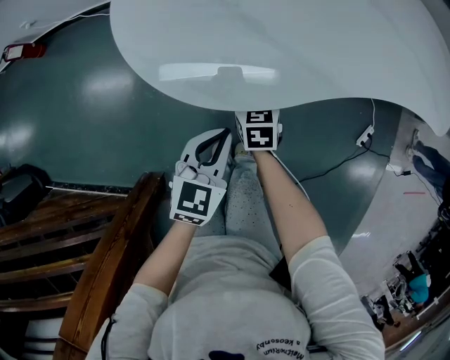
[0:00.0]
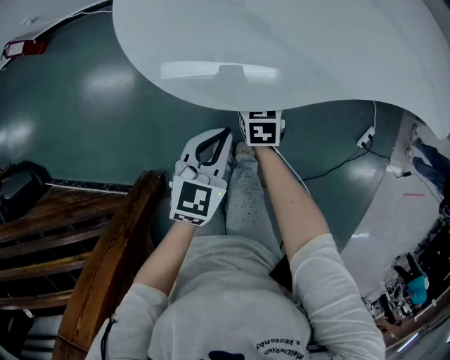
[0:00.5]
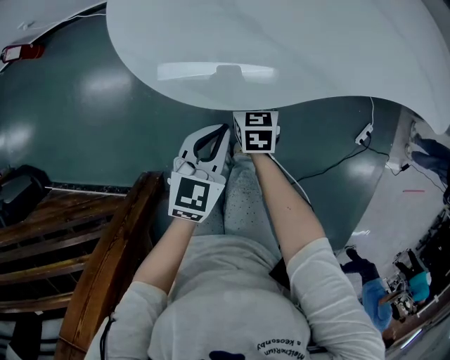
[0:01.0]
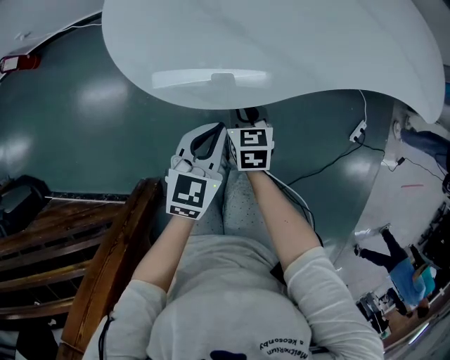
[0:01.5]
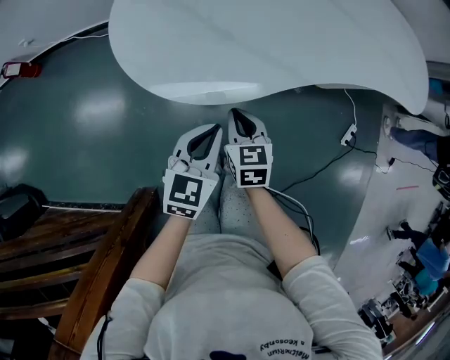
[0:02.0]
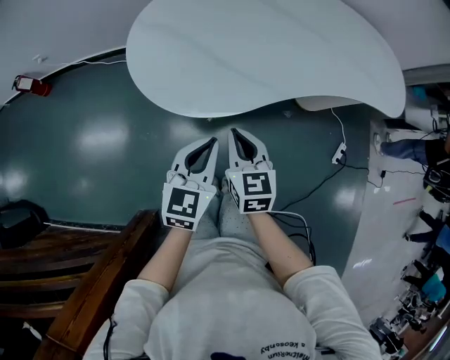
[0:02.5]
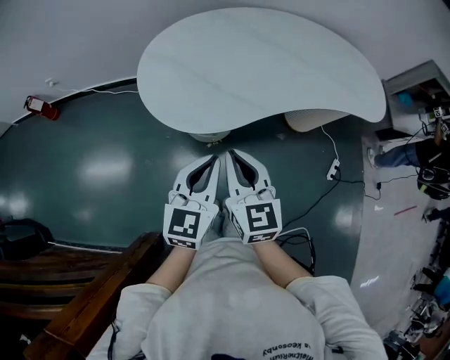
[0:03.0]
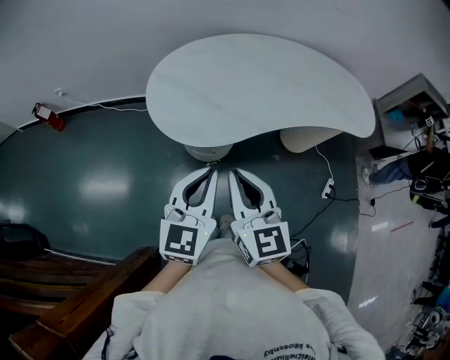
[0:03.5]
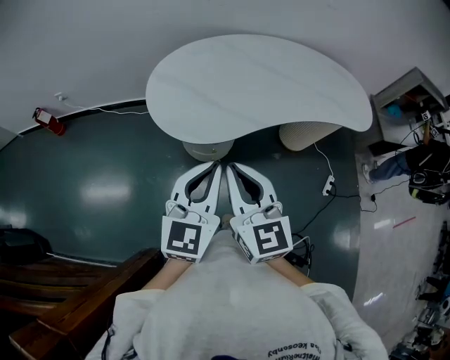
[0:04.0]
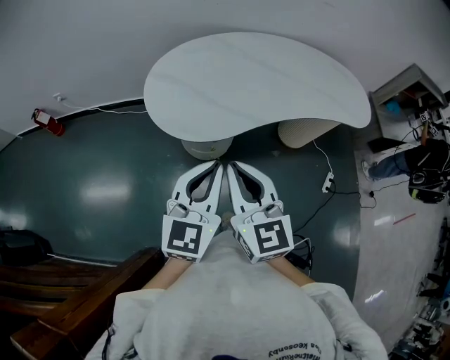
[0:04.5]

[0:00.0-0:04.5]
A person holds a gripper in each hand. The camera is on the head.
0:00.0 to 0:02.0: The right gripper travels upward and backward by roughly 15 cm, and closes up; the left gripper moves some 5 cm.
0:02.0 to 0:04.5: Both grippers travel together upward, some 30 cm. The left gripper changes its angle by roughly 20 degrees, while the right gripper tilts its fingers about 30 degrees upward.

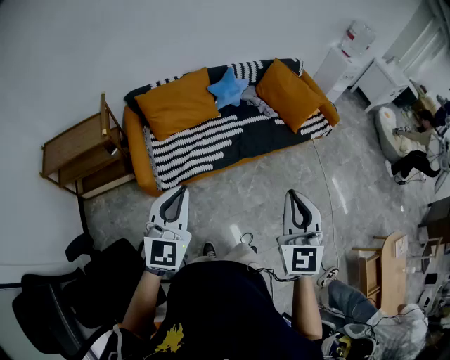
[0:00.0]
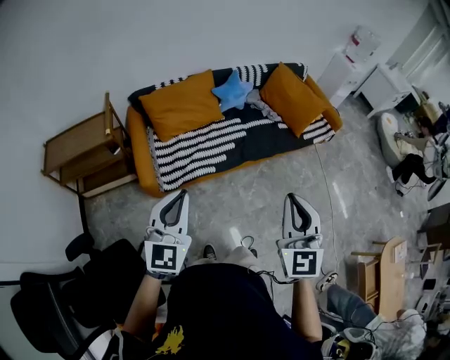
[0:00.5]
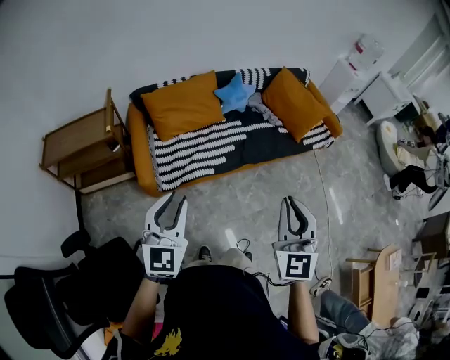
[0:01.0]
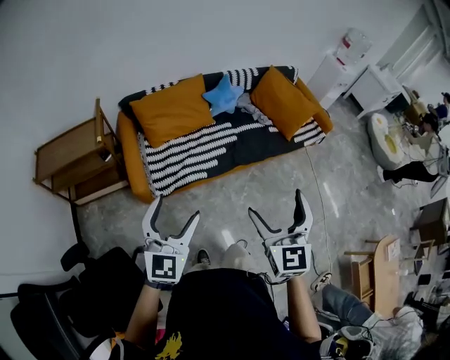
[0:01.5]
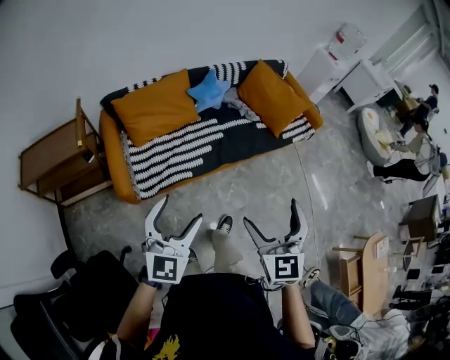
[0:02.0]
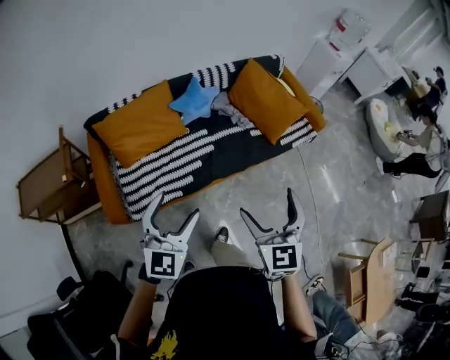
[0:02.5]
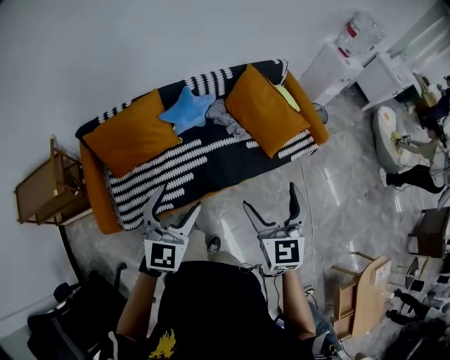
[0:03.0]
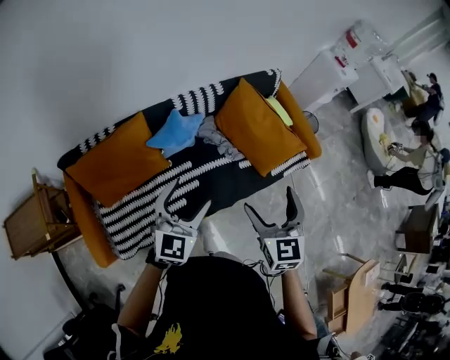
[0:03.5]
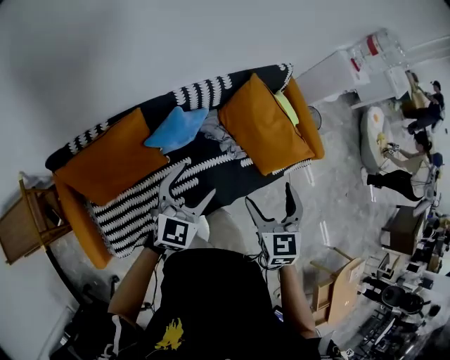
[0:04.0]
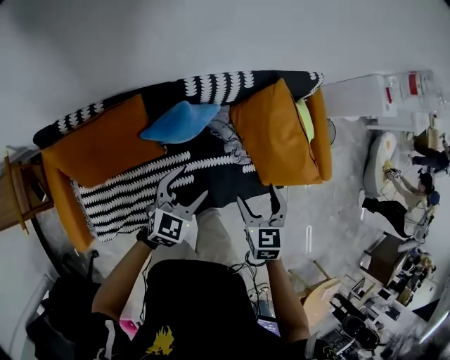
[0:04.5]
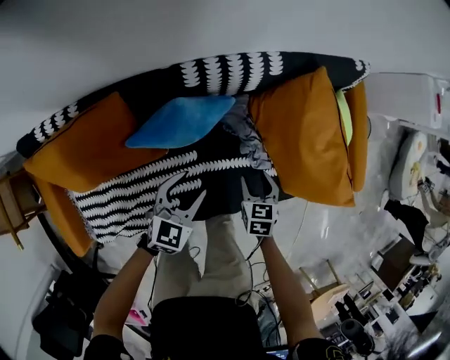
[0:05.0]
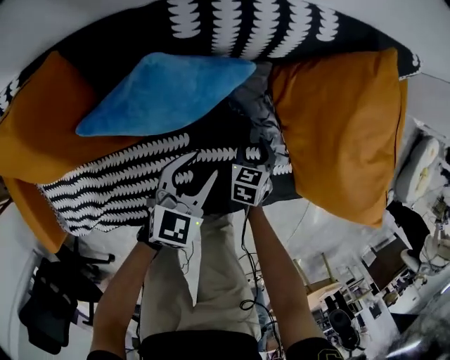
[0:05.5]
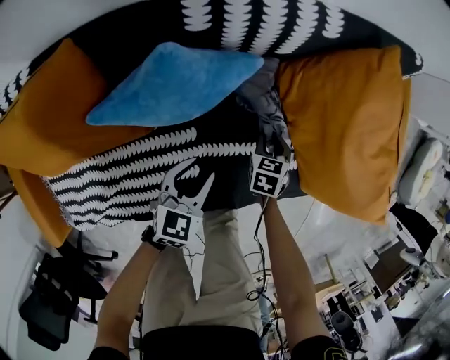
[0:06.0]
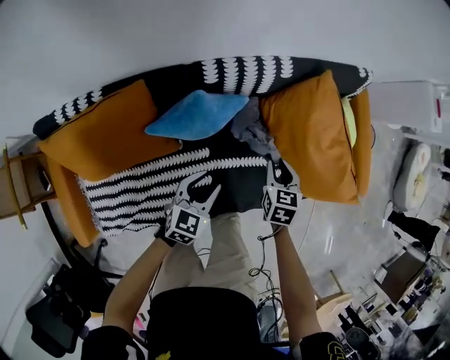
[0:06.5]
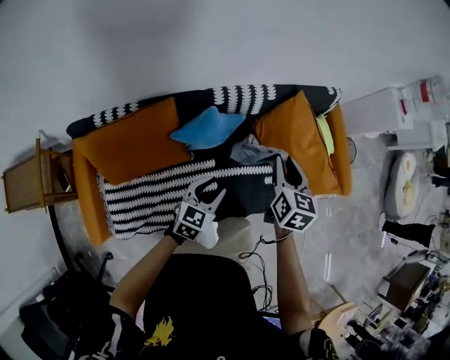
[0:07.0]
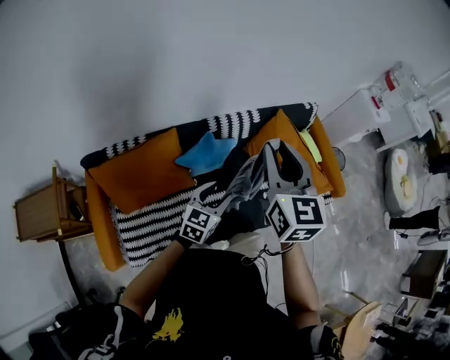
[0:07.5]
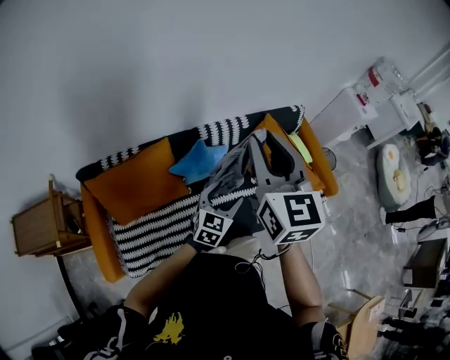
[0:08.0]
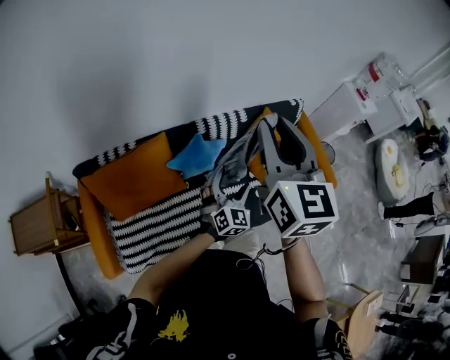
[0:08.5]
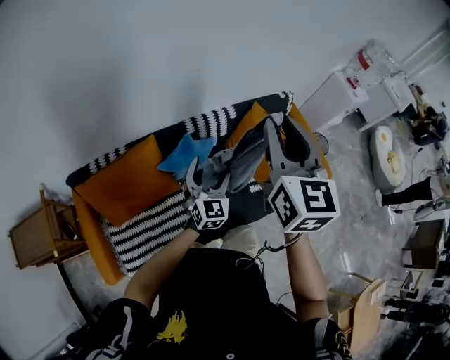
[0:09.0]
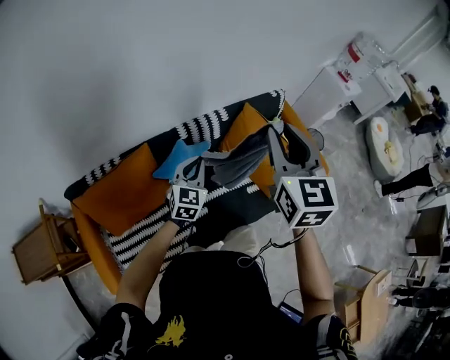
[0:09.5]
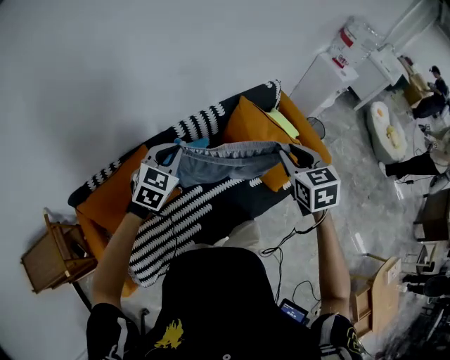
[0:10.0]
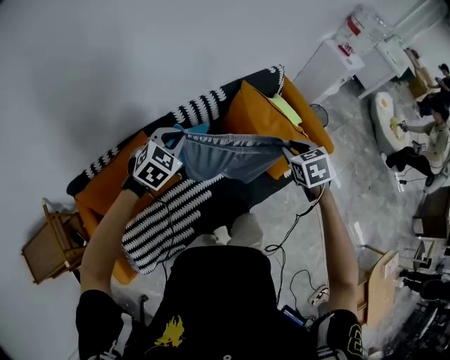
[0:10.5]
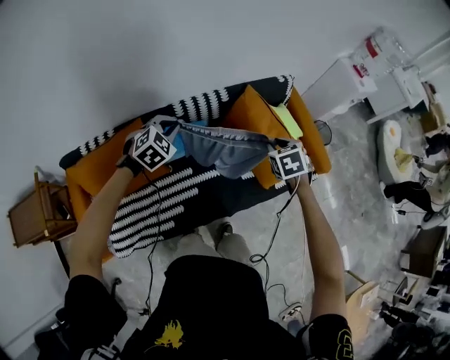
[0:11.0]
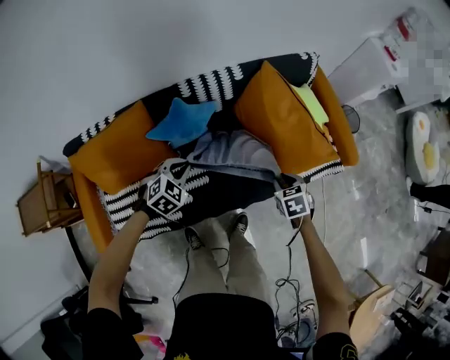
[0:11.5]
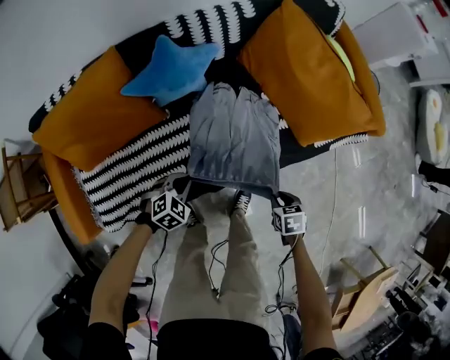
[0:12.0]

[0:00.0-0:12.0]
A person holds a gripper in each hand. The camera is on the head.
0:00.0 to 0:02.0: The grippers both shift forward by about 5 cm. The left gripper opens up, while the right gripper opens up.
0:02.0 to 0:04.0: Both grippers are carried forward, some 70 cm.
0:04.0 to 0:06.0: Both grippers travel together downward, roughly 60 cm. The left gripper turns by about 30 degrees, and closes. Meanwhile the right gripper angles its fingers downward, by roughly 30 degrees, and closes.
0:06.0 to 0:08.0: The right gripper heads upward, covering some 90 cm, and tilts its fingers roughly 60 degrees upward. Meanwhile the left gripper moves upward, roughly 50 cm, changes its angle by some 20 degrees, and opens.
0:08.0 to 0:10.0: The left gripper moves forward, to the left and upward, some 15 cm, swivels about 20 degrees, and closes up, while the right gripper shifts some 25 cm to the right and downward, and changes its angle by some 30 degrees.
0:10.0 to 0:12.0: The left gripper heads downward and backward, covering some 60 cm, and tips its fingers downward by approximately 30 degrees; the right gripper goes approximately 60 cm downward, and tilts its fingers roughly 40 degrees downward.

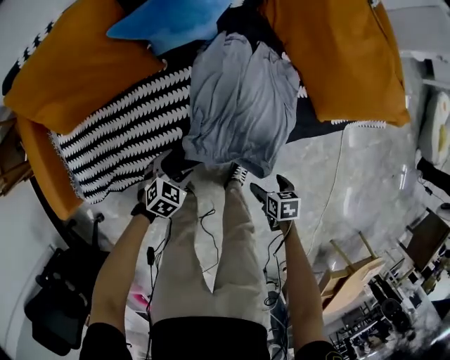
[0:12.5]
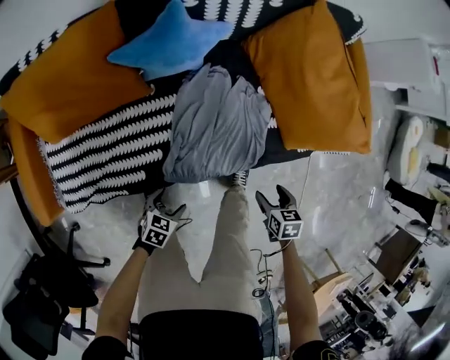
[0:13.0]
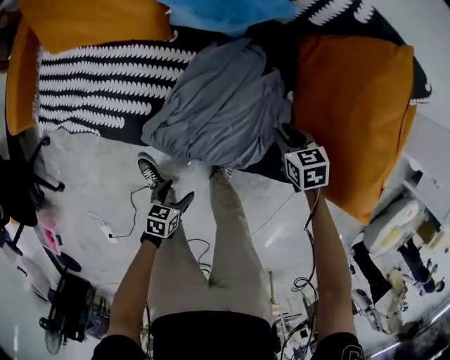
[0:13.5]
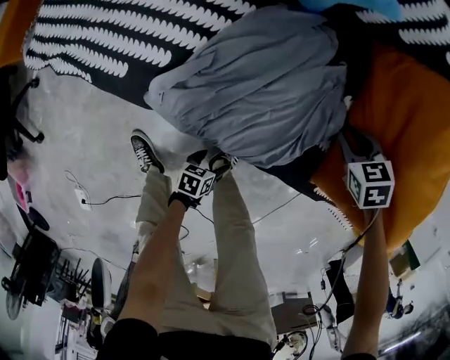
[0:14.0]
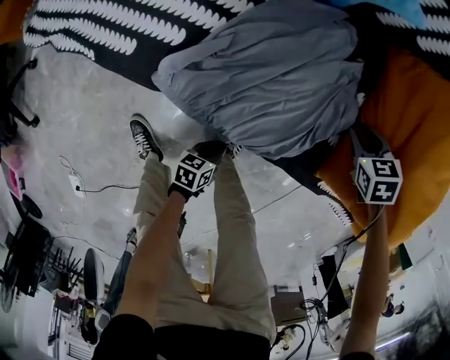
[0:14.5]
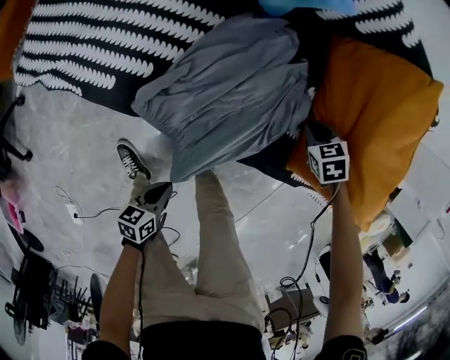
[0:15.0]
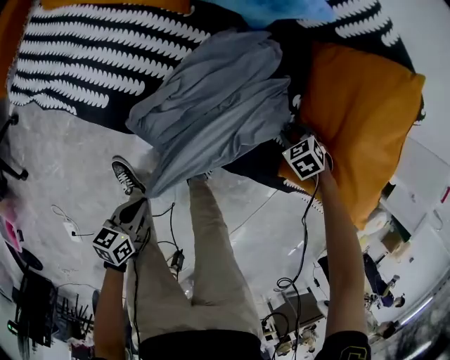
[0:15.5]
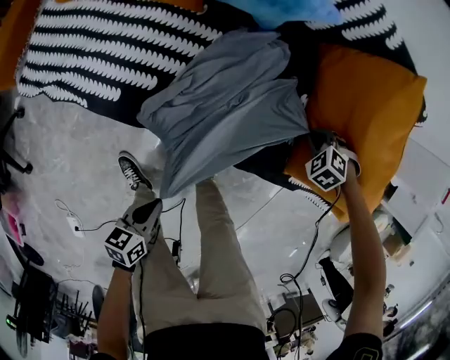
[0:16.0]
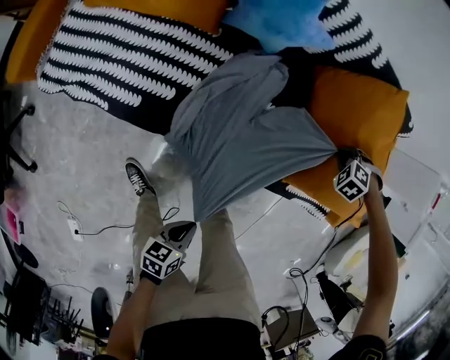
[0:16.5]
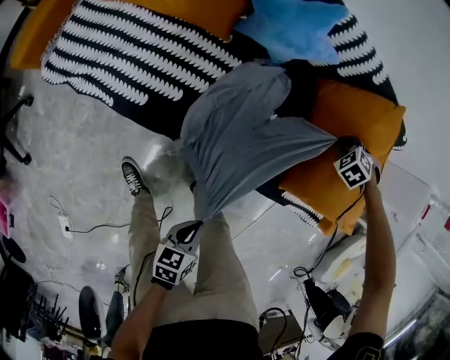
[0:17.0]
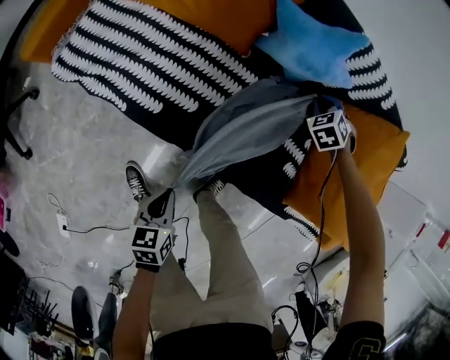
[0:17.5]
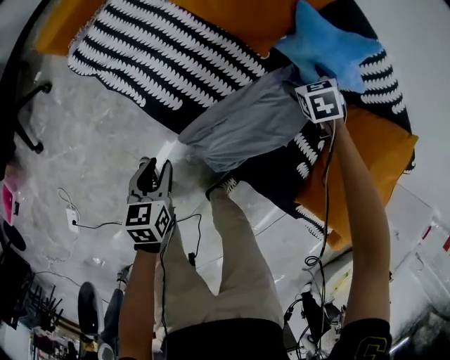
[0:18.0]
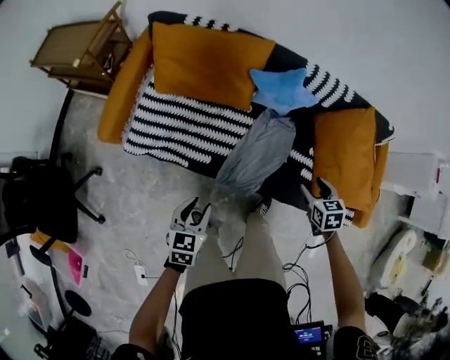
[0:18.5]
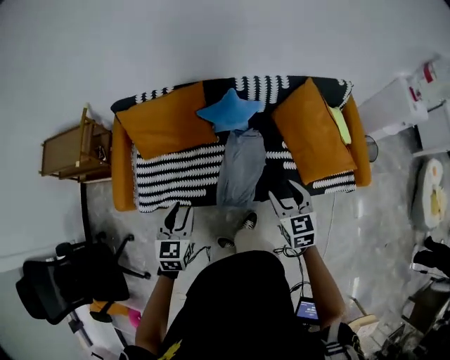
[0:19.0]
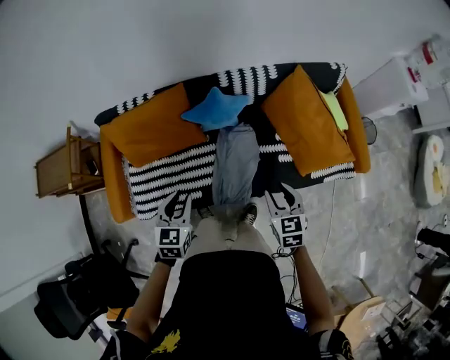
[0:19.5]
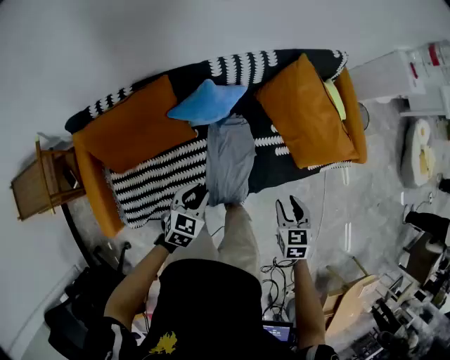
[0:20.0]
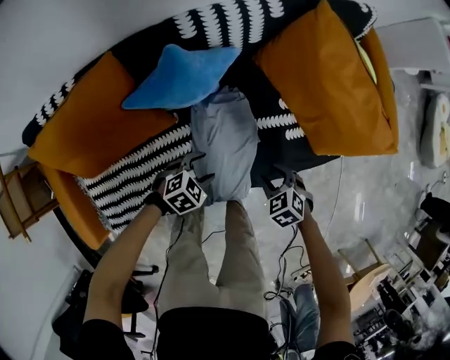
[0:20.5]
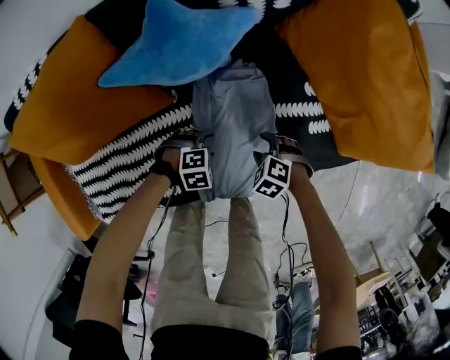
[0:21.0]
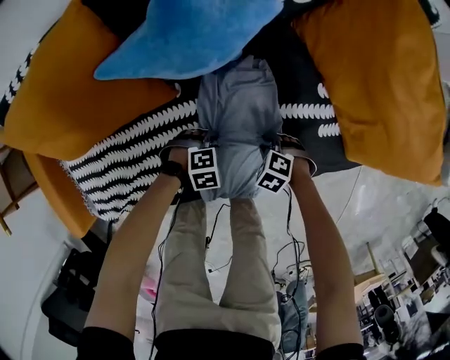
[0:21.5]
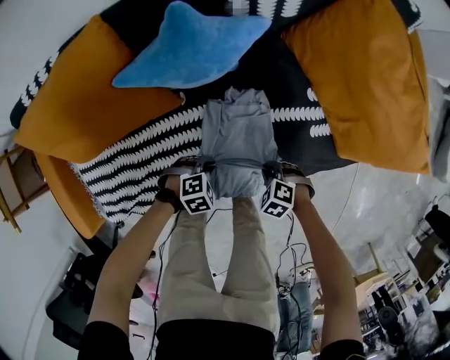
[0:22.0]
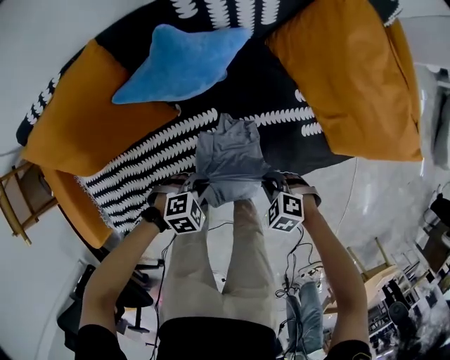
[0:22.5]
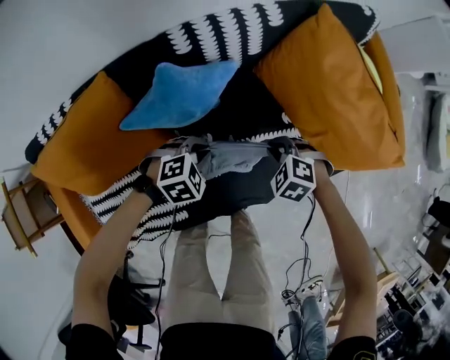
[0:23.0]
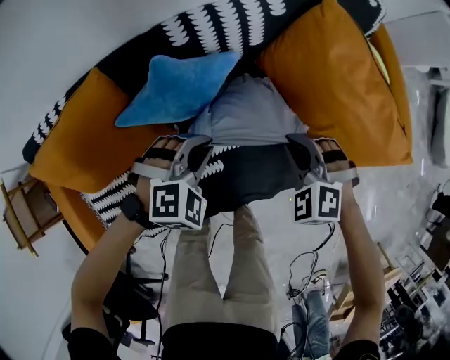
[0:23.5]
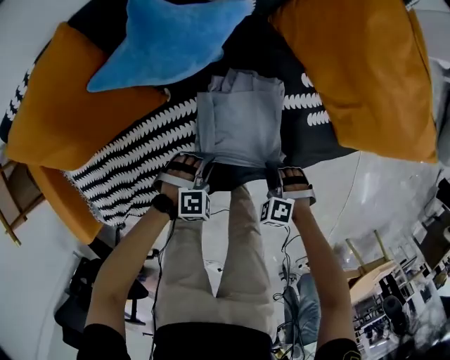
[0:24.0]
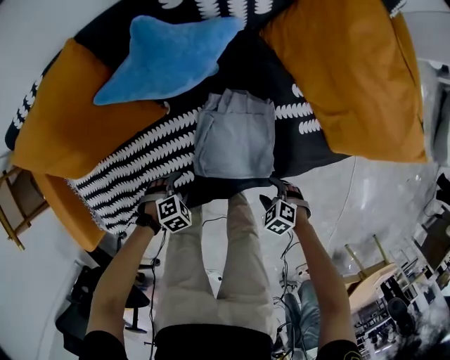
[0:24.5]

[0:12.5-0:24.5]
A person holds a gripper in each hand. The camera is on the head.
0:12.5 to 0:14.5: The right gripper reaches approximately 10 cm upward, then returns, rotates around the line of its fingers by some 70 degrees, counterclockwise from behind, and closes its fingers; the left gripper ends up approximately 35 cm from where it was, rotates around the line of its fingers by roughly 80 degrees, counterclockwise from behind, and closes.
0:14.5 to 0:16.5: The left gripper heads upward, covering roughly 30 cm. Meanwhile the right gripper moves upward, approximately 15 cm, and rolls counterclockwise, seen from behind, by some 40 degrees.
0:16.5 to 0:18.5: The right gripper ends up some 40 cm from where it was, twists approximately 70 degrees clockwise, seen from behind, and opens up, while the left gripper changes place by roughly 40 cm, turns by some 40 degrees, and opens its fingers.
0:18.5 to 0:20.5: The right gripper heads downward, covering some 20 cm. The left gripper changes place by roughly 40 cm, and changes its angle by about 80 degrees.
0:20.5 to 0:22.5: The right gripper goes downward and returns, approximately 20 cm each way, and rotates some 30 degrees, while the left gripper travels downward and back again, roughly 20 cm each way, and closes up.
0:22.5 to 0:24.5: The grippers both shift downward by about 10 cm. The left gripper opens, while the right gripper opens up.
